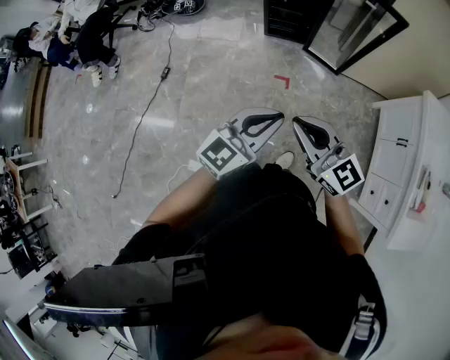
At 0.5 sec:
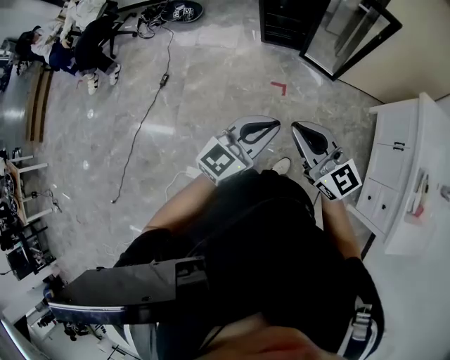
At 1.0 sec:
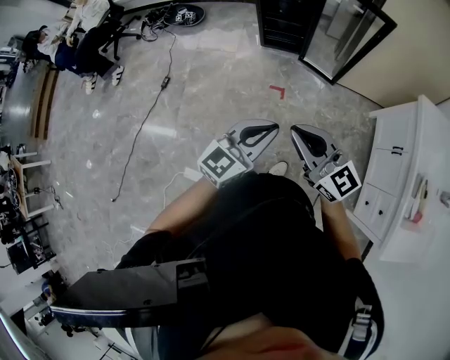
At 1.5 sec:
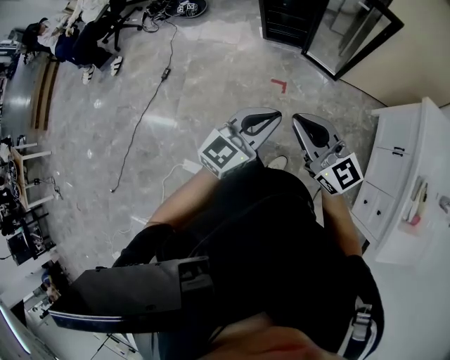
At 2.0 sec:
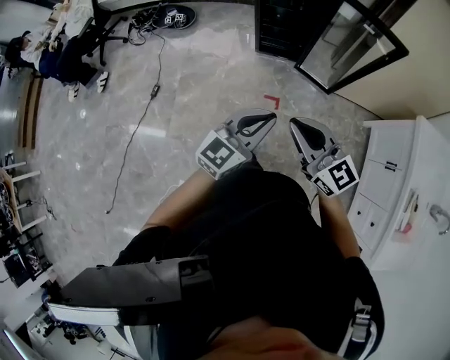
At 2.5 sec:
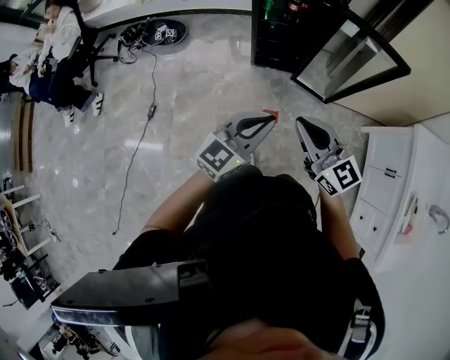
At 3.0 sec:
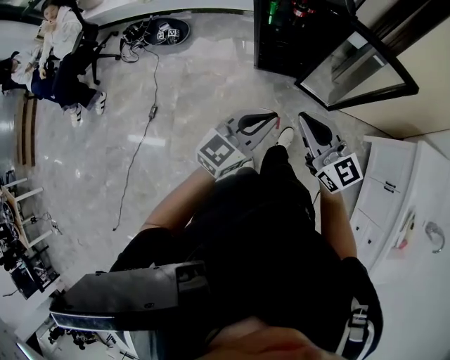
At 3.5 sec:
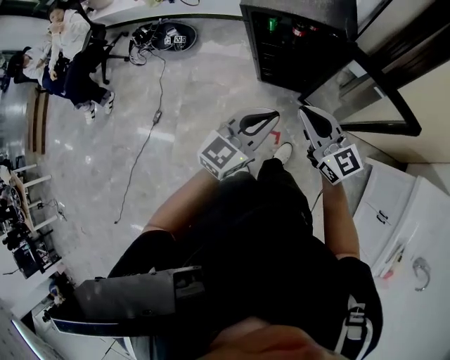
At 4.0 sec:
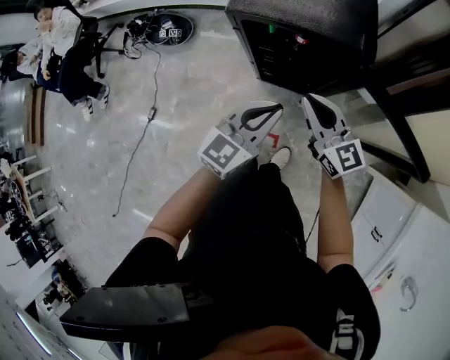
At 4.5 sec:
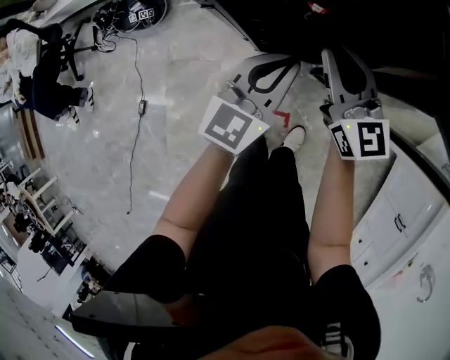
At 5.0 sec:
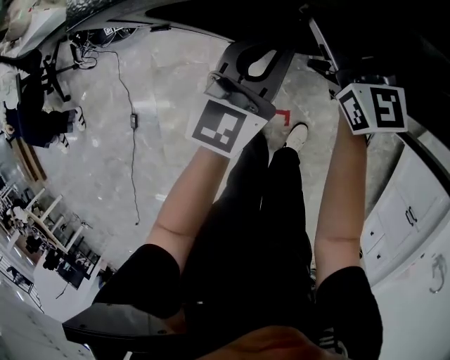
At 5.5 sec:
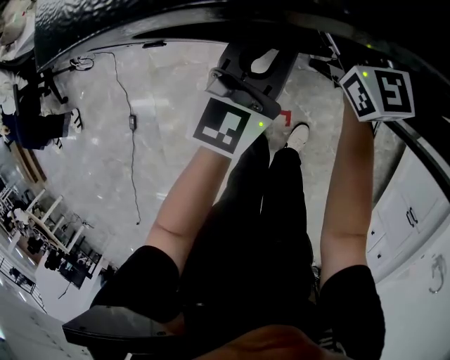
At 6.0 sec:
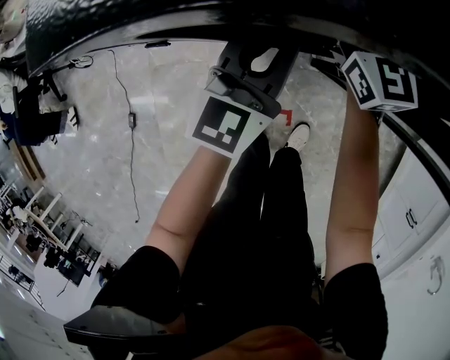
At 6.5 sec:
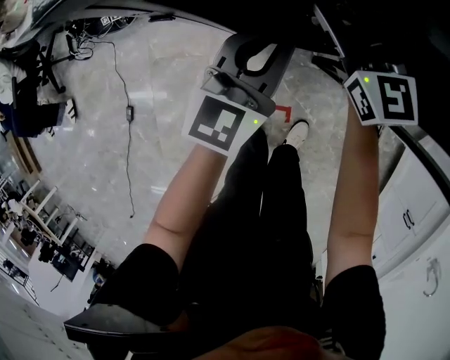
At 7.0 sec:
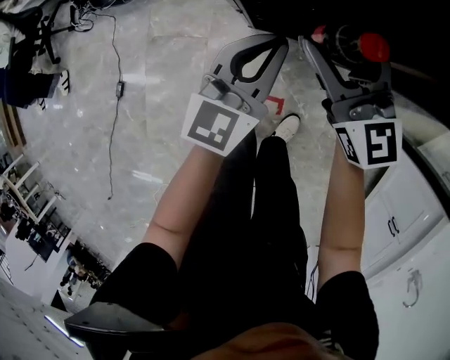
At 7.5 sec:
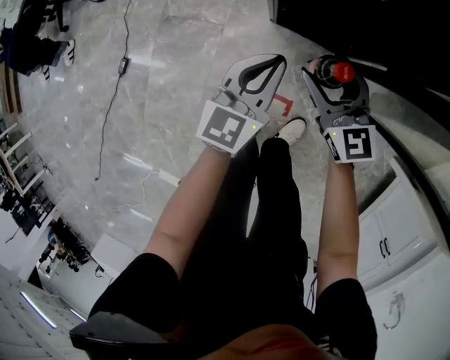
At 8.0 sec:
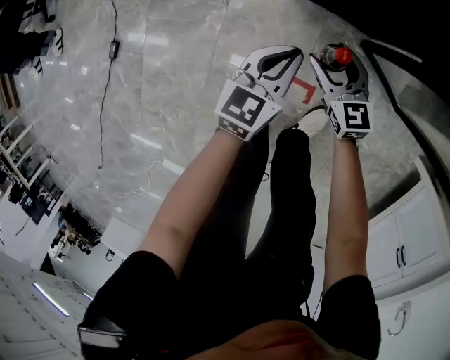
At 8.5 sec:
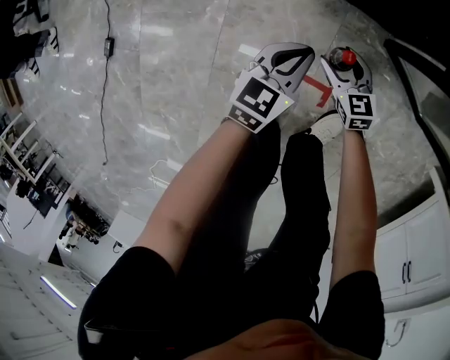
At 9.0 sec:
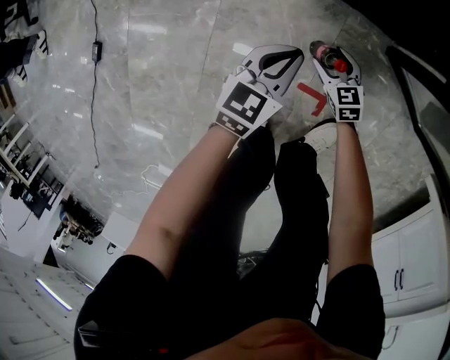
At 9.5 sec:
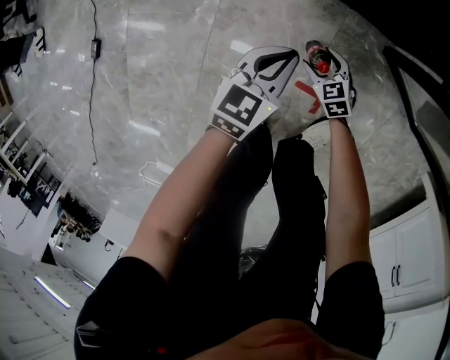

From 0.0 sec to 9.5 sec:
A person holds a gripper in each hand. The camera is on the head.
From 0.0 sec to 2.0 sec: The grippers both shift forward by roughly 15 cm.
From 2.0 sec to 4.0 sec: Both grippers are carried forward, approximately 50 cm.
From 4.0 sec to 5.5 sec: The two grippers go about 30 cm forward and downward. The right gripper turns by approximately 20 degrees, and opens its fingers.
From 5.5 sec to 7.5 sec: The right gripper is displaced backward and downward by about 25 cm, and turns by roughly 20 degrees, while the left gripper goes about 20 cm backward, downward and to the left.
From 7.5 sec to 9.5 sec: Both grippers travel together downward, some 50 cm. The right gripper tilts its fingers approximately 40 degrees downward. Meanwhile the left gripper changes its angle by approximately 20 degrees.

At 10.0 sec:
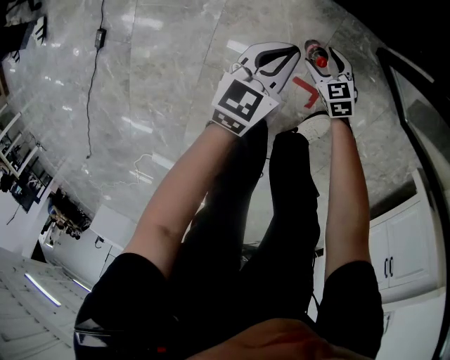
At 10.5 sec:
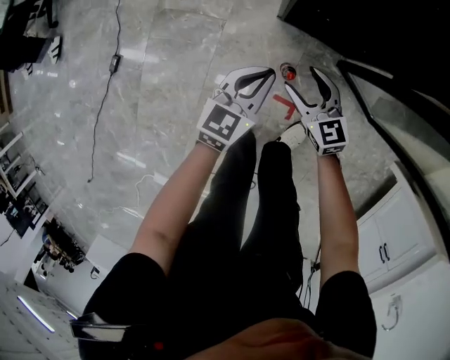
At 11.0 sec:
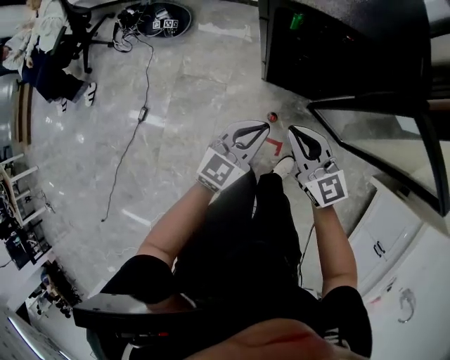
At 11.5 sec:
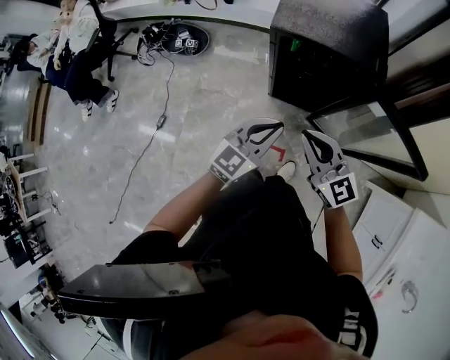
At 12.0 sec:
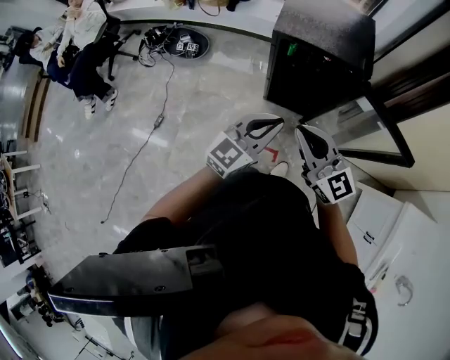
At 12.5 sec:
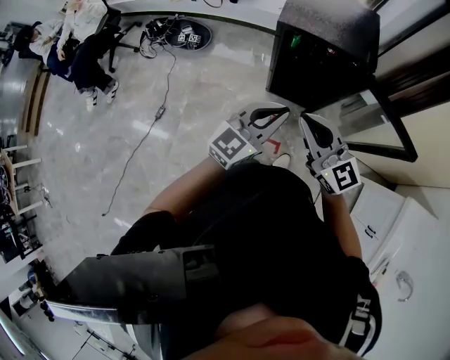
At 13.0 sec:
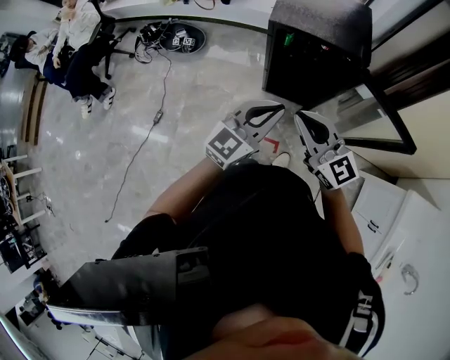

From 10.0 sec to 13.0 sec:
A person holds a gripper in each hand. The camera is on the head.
From 10.0 sec to 11.5 sec: Both grippers travel together upward, about 80 cm. The right gripper tips its fingers upward by approximately 40 degrees, and closes. The left gripper turns by approximately 30 degrees.
From 11.5 sec to 13.0 sec: Both grippers move upward, roughly 10 cm.

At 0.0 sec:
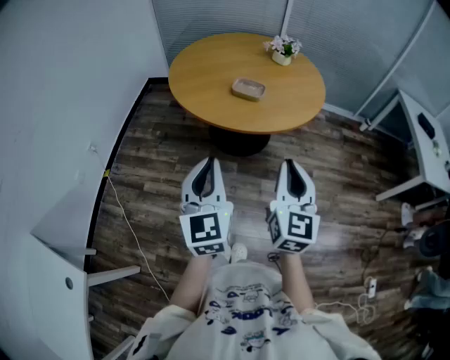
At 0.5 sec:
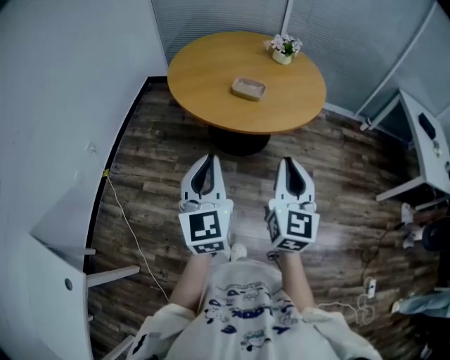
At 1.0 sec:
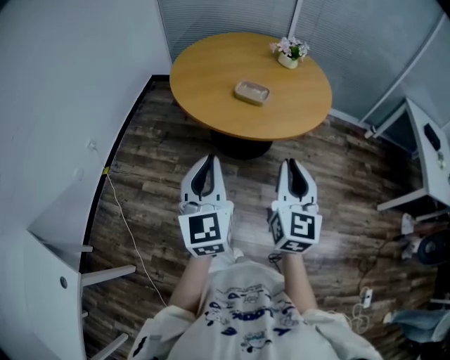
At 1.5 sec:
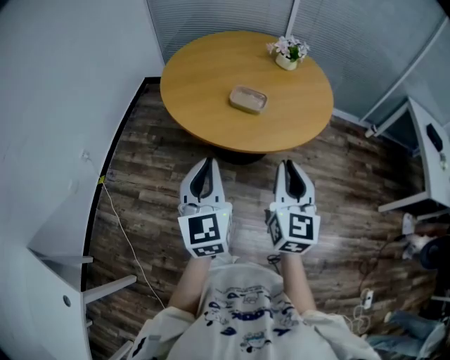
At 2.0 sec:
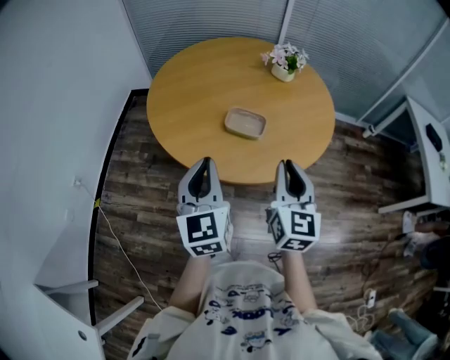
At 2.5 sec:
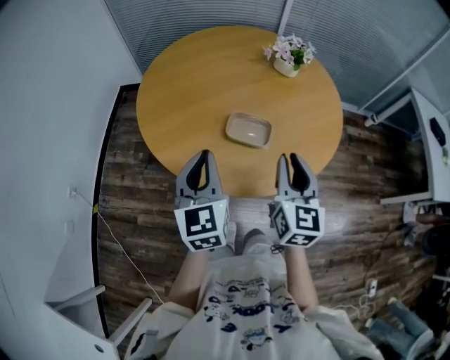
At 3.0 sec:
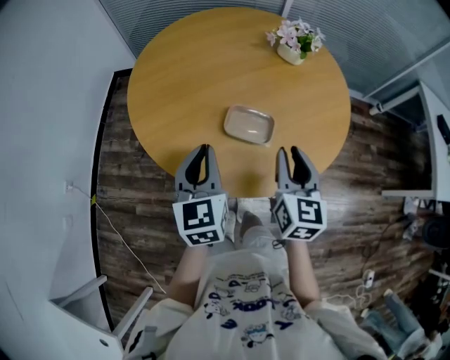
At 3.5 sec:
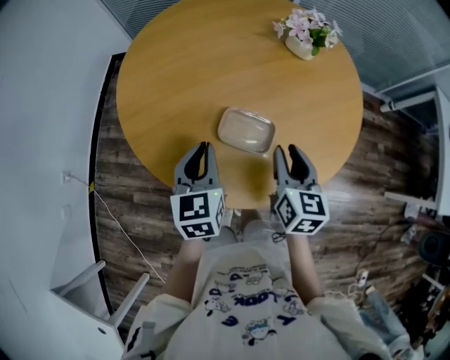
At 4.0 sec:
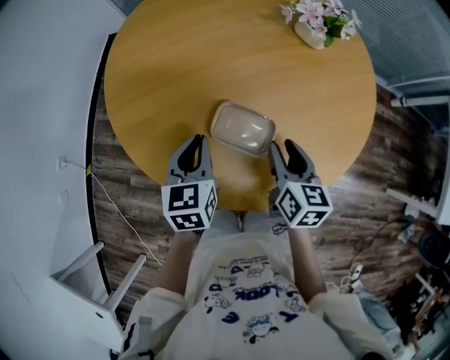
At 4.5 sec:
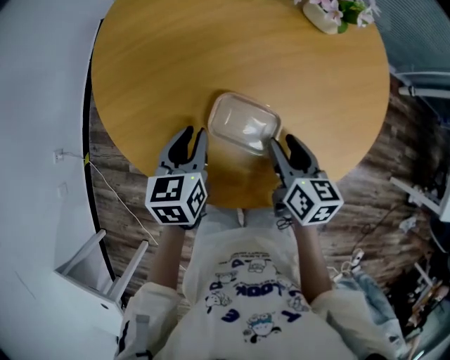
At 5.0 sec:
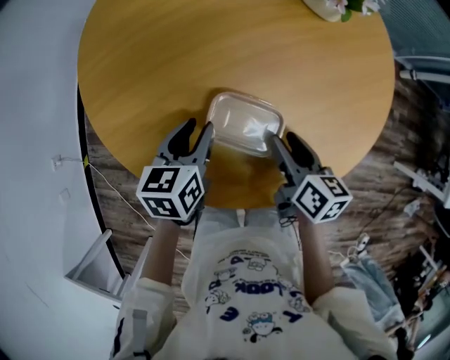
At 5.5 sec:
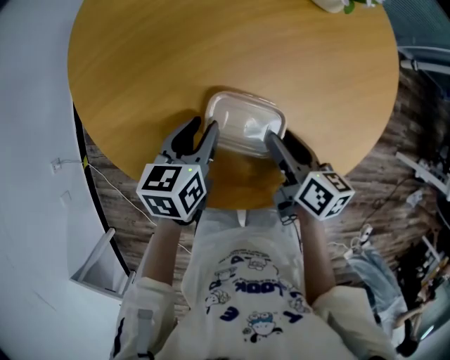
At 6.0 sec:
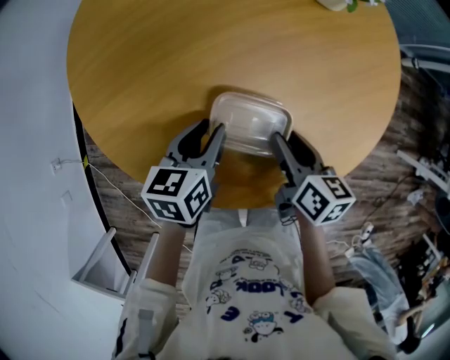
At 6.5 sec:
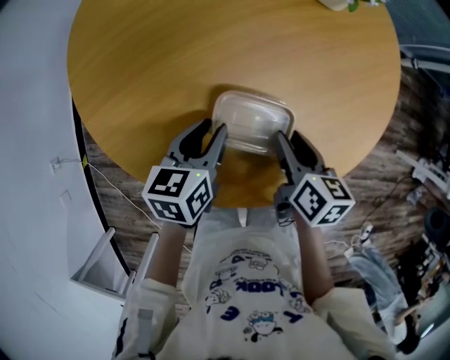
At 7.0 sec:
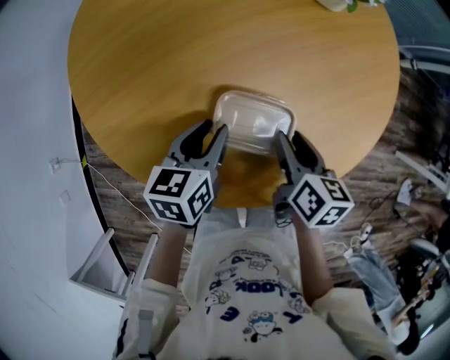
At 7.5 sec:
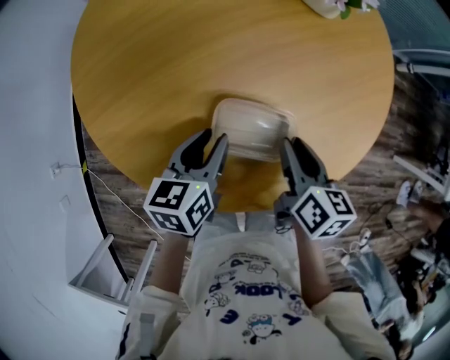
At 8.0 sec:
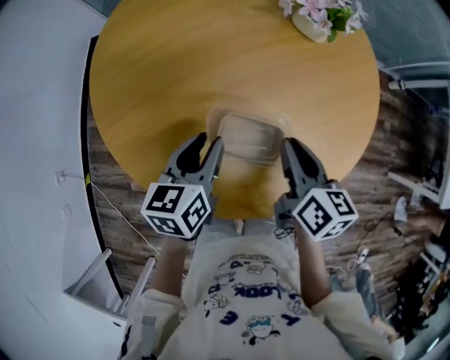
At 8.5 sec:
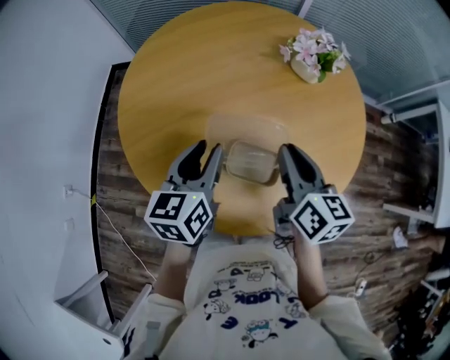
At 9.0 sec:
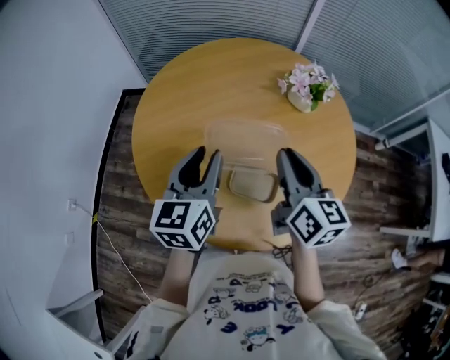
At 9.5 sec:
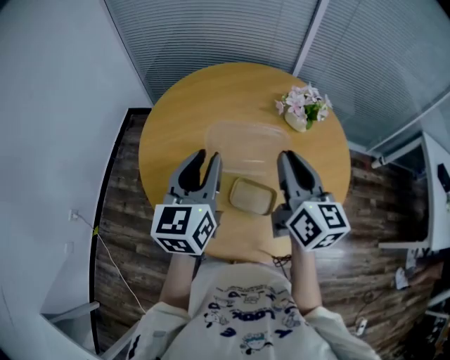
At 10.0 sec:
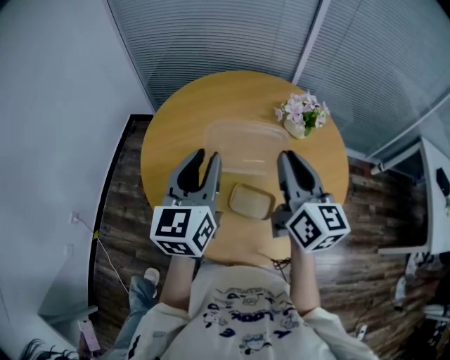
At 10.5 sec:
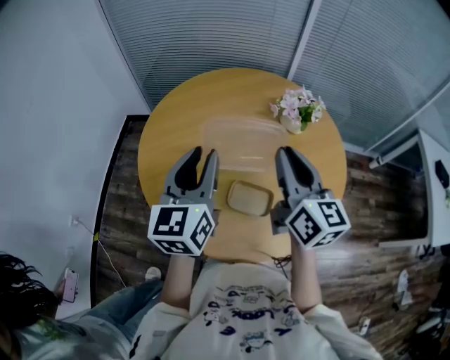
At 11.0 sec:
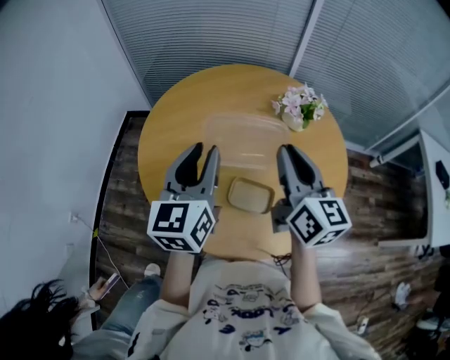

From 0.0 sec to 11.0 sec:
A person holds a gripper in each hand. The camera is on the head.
From 0.0 sec to 2.0 sec: Both grippers move forward, approximately 30 cm.
From 2.0 sec to 3.5 sec: Both grippers move forward and downward, some 25 cm. The right gripper rotates approximately 20 degrees, while the left gripper swivels some 20 degrees.
From 3.5 sec to 5.5 sec: The right gripper shifts approximately 10 cm downward, and swivels some 40 degrees. Meanwhile the left gripper goes approximately 15 cm downward and forward, changes its angle by roughly 30 degrees, and opens.
From 5.5 sec to 7.5 sec: The grippers make only small movements.
From 7.5 sec to 9.0 sec: The two grippers go roughly 20 cm upward. The left gripper changes its angle by approximately 30 degrees, while the right gripper rotates some 30 degrees.
From 9.0 sec to 11.0 sec: Both grippers travel together upward, roughly 10 cm.

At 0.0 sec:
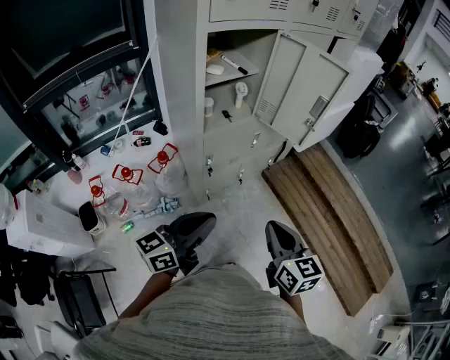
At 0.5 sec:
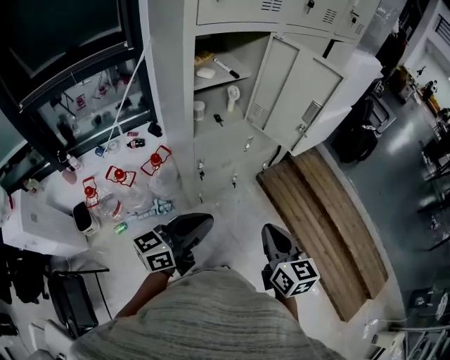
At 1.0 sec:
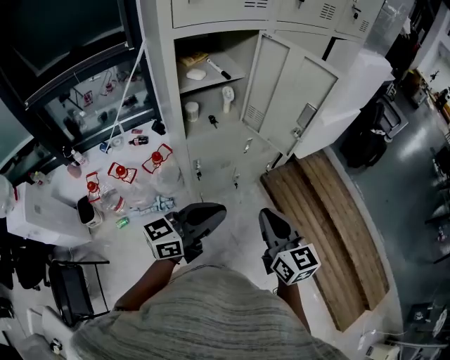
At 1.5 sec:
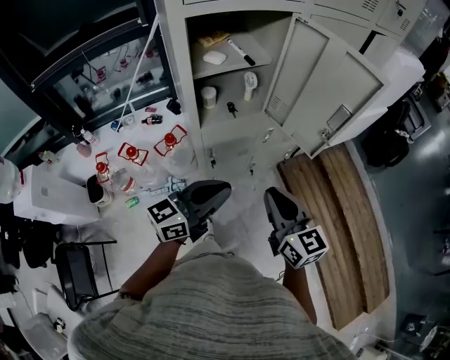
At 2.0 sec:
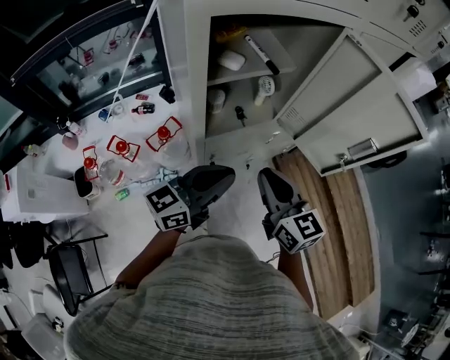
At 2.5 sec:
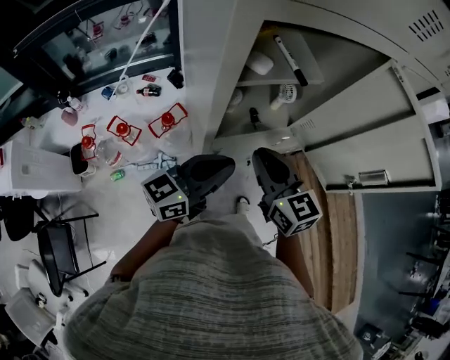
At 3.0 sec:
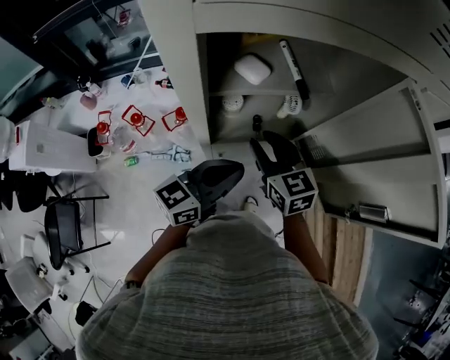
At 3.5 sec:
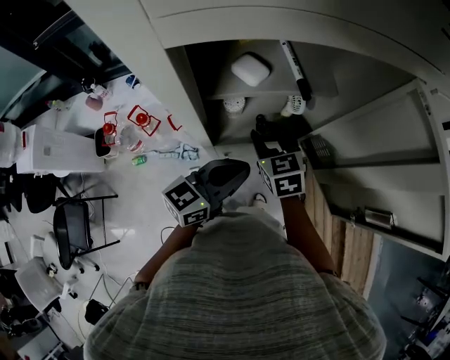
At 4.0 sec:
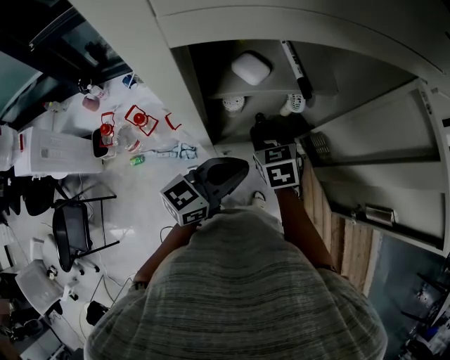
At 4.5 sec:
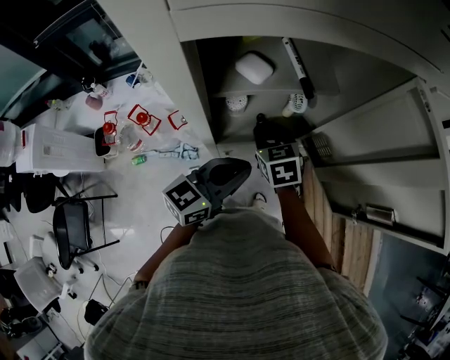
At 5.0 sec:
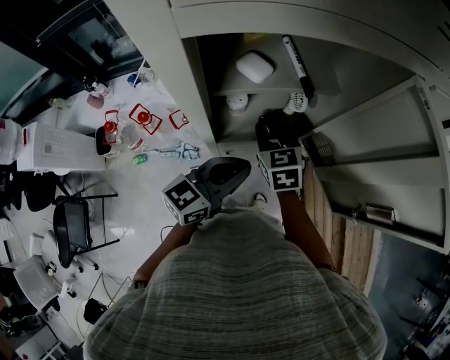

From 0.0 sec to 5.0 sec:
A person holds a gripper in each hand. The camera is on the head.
From 0.0 sec to 2.5 sec: The right gripper moves forward and to the left, some 35 cm, and turns by about 30 degrees, while the left gripper heads forward, covering approximately 30 cm.
From 2.5 sec to 5.0 sec: The right gripper travels forward and downward by about 15 cm, and changes its angle by about 20 degrees, while the left gripper changes place by roughly 5 cm.
